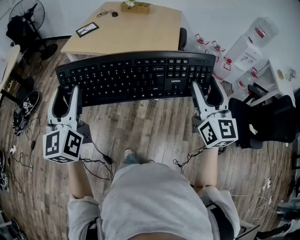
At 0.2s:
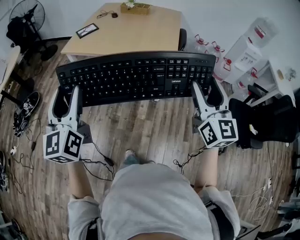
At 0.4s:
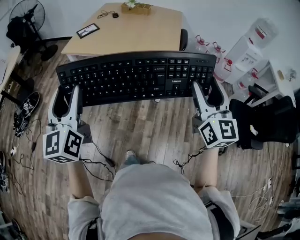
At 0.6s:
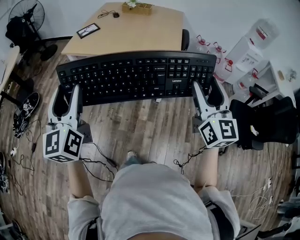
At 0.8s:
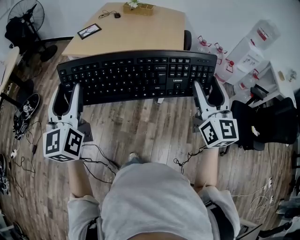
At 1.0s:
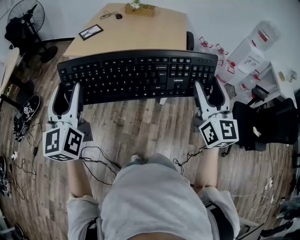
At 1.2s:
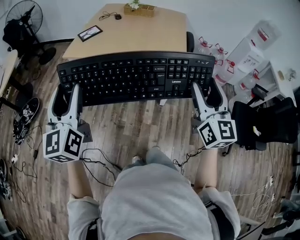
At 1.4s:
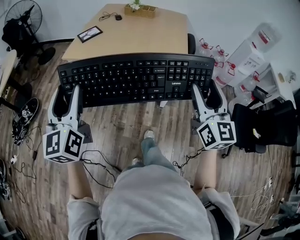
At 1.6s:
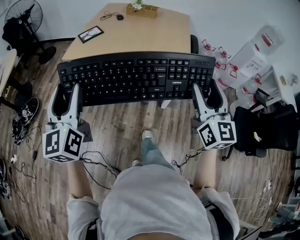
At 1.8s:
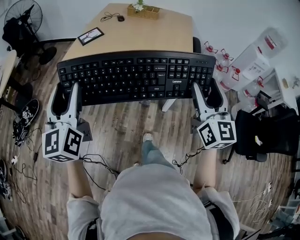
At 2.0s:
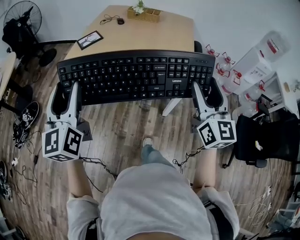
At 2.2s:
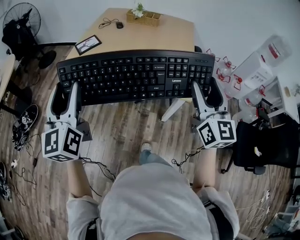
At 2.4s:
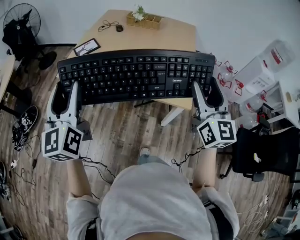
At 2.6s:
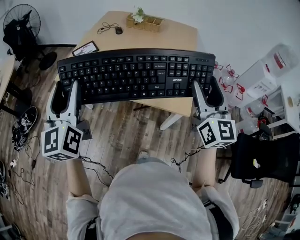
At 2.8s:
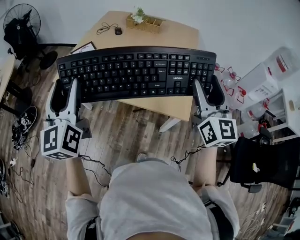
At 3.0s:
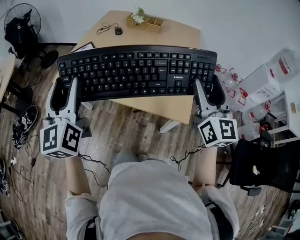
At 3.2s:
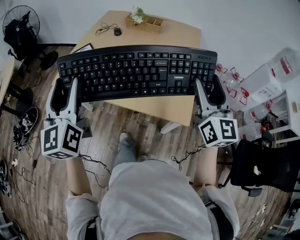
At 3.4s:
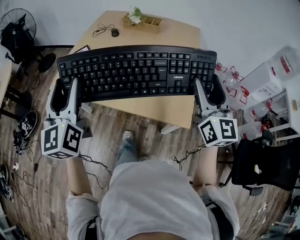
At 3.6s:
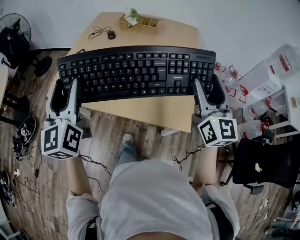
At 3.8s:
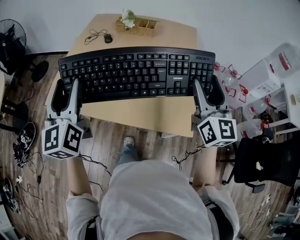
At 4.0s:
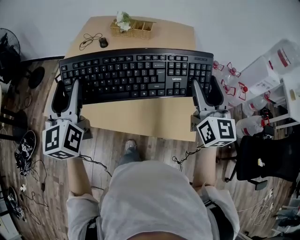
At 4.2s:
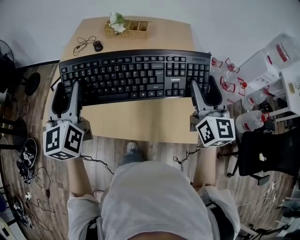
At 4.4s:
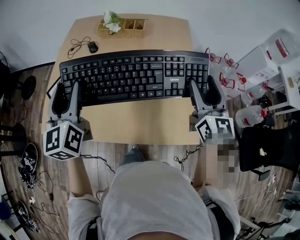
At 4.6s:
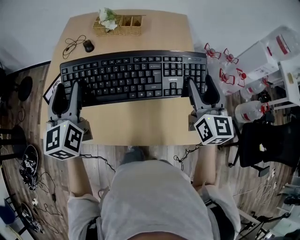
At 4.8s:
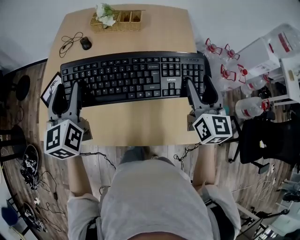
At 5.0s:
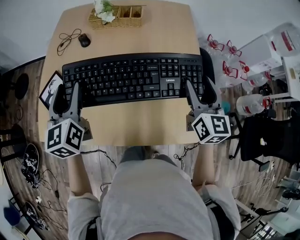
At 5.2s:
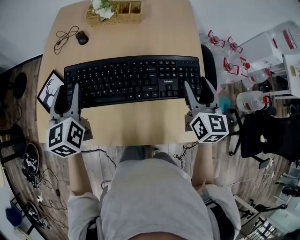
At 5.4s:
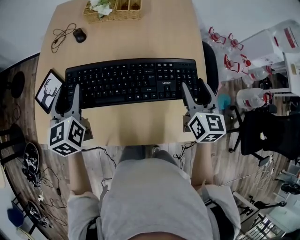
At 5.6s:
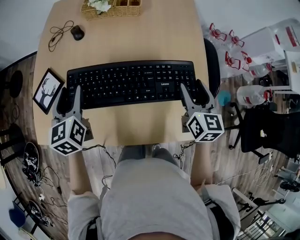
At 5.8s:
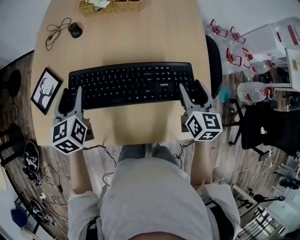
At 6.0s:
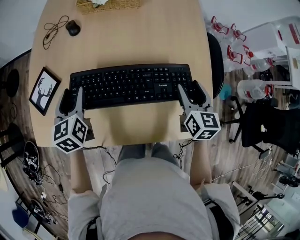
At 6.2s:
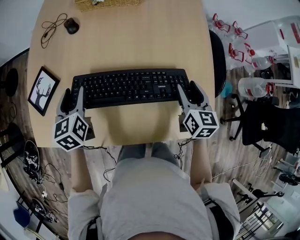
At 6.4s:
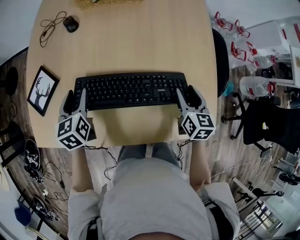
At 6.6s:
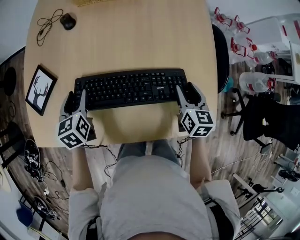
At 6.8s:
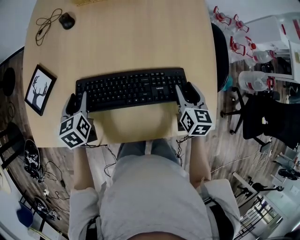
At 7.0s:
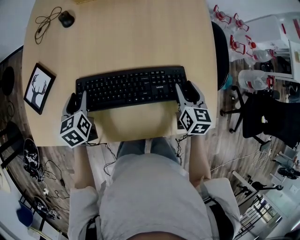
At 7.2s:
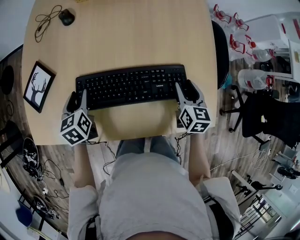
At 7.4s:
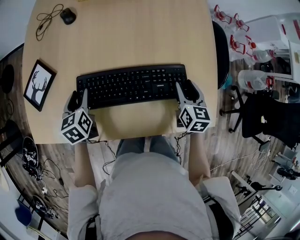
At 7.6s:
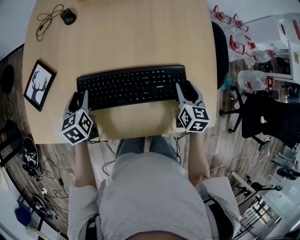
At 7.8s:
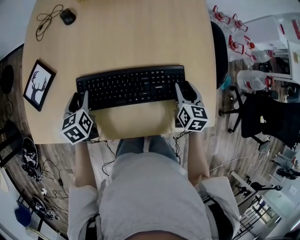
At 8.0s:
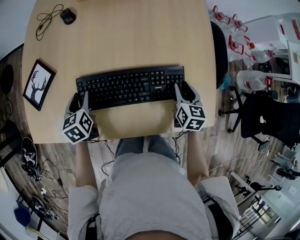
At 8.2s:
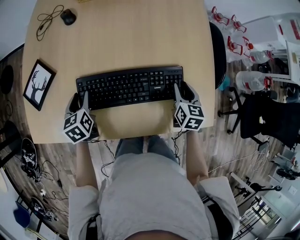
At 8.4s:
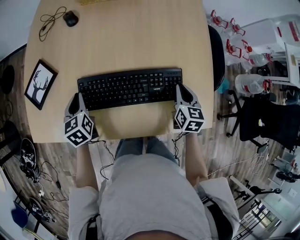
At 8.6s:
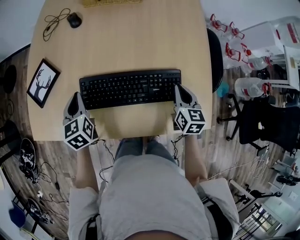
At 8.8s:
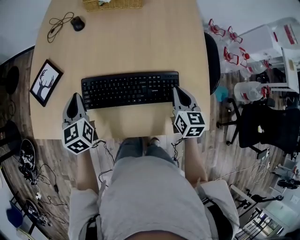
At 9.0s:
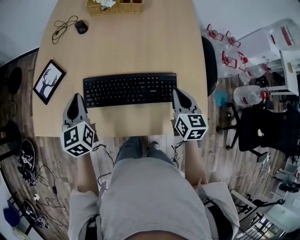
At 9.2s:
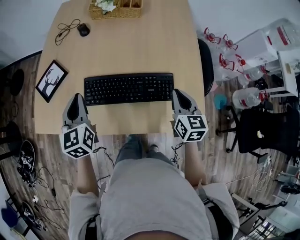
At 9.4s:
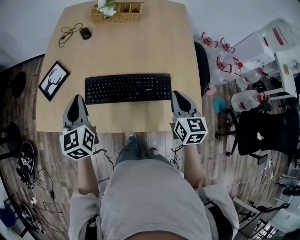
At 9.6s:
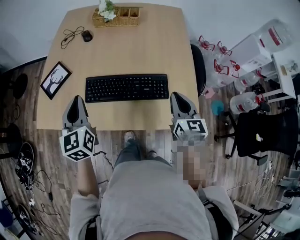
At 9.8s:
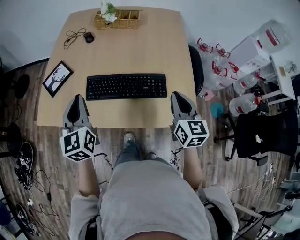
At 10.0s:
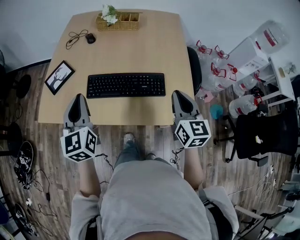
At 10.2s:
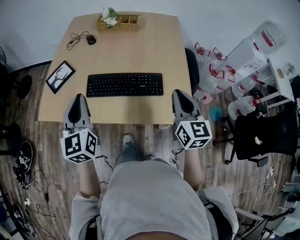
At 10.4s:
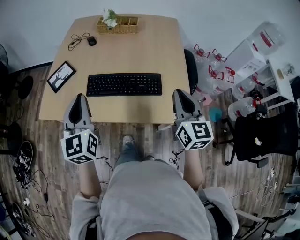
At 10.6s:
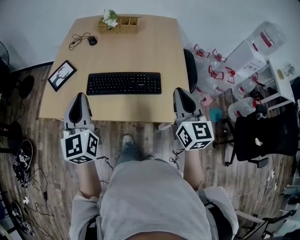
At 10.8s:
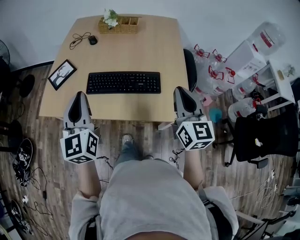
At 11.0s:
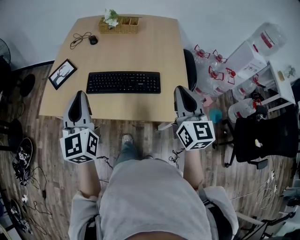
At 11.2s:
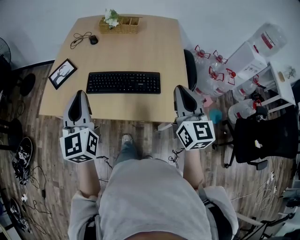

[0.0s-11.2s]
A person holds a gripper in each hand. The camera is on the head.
0.0s to 1.6s: The two grippers go approximately 15 cm forward and to the left.
1.6s to 3.2s: The two grippers go roughly 30 cm forward.
3.2s to 4.8s: The right gripper travels forward and downward by roughly 25 cm, and rotates roughly 20 degrees. The left gripper heads forward, covering some 35 cm, and swivels about 20 degrees.
4.8s to 6.4s: Both grippers move downward, approximately 25 cm. The right gripper rotates roughly 30 degrees, while the left gripper changes its angle by roughly 30 degrees.
6.4s to 8.0s: The left gripper moves downward, about 5 cm. The right gripper changes place by roughly 5 cm.
8.0s to 9.6s: Both grippers move upward and backward, roughly 25 cm. The right gripper turns by approximately 20 degrees, and closes its fingers. The left gripper tilts its fingers roughly 30 degrees upward, and closes.
9.6s to 11.2s: The left gripper moves backward, upward and to the right, about 15 cm. Meanwhile the right gripper shifts approximately 15 cm upward and backward.

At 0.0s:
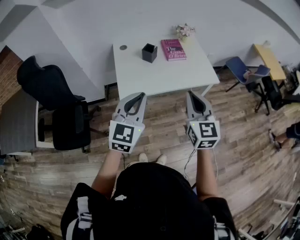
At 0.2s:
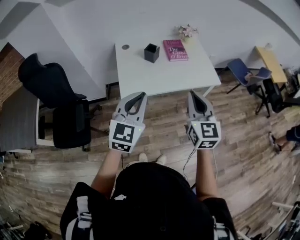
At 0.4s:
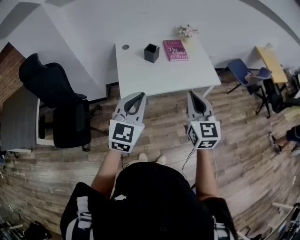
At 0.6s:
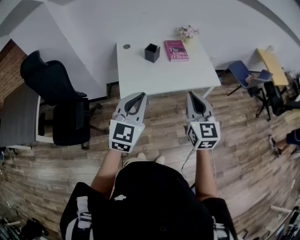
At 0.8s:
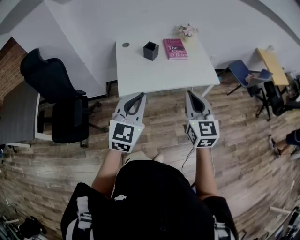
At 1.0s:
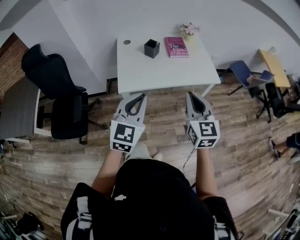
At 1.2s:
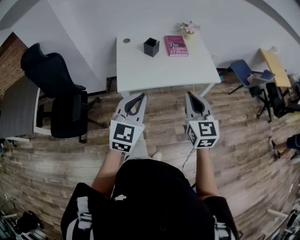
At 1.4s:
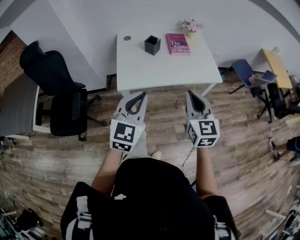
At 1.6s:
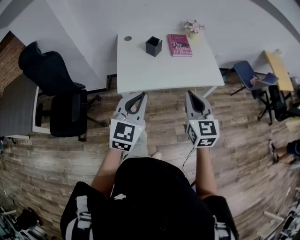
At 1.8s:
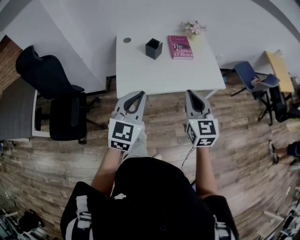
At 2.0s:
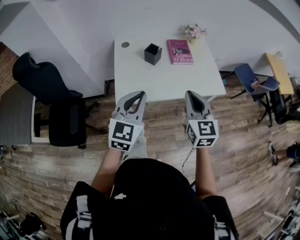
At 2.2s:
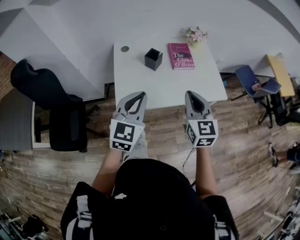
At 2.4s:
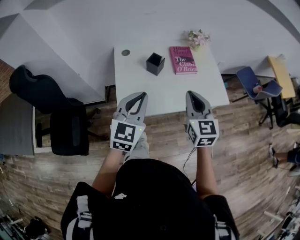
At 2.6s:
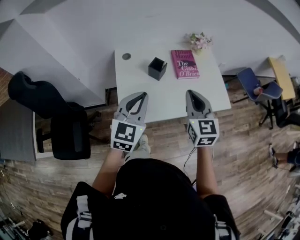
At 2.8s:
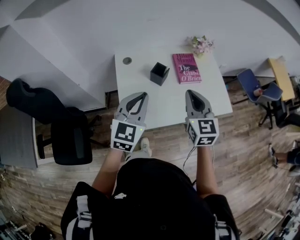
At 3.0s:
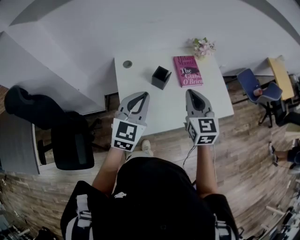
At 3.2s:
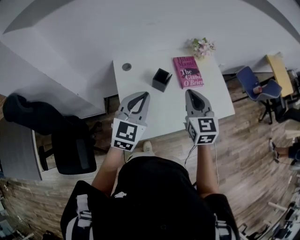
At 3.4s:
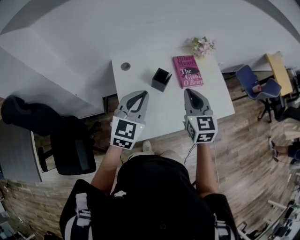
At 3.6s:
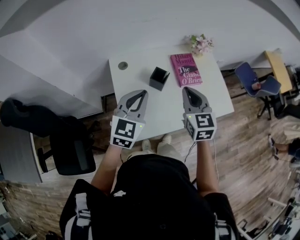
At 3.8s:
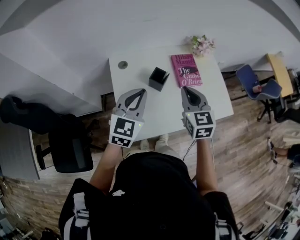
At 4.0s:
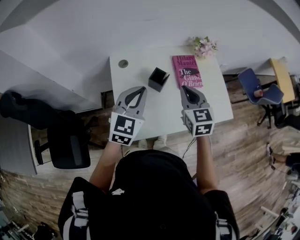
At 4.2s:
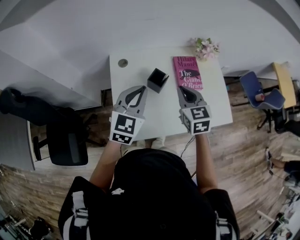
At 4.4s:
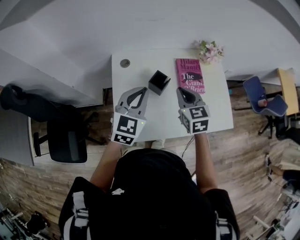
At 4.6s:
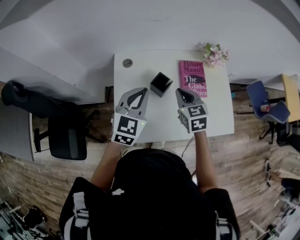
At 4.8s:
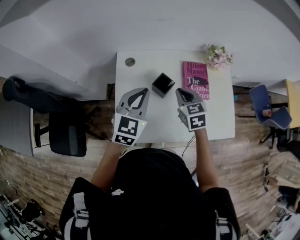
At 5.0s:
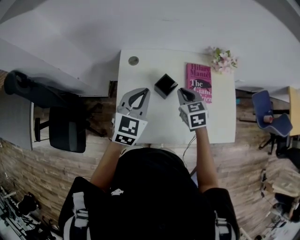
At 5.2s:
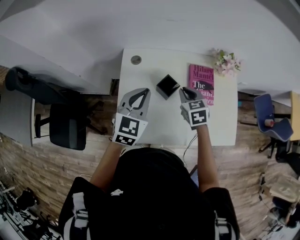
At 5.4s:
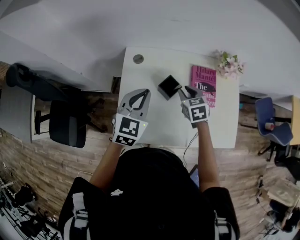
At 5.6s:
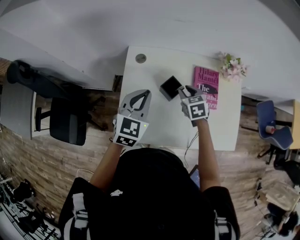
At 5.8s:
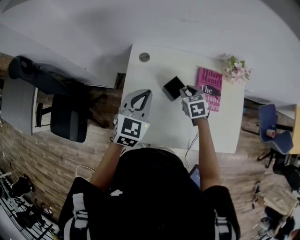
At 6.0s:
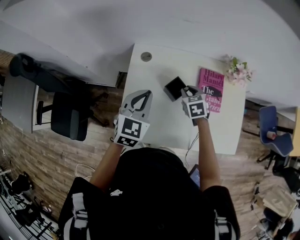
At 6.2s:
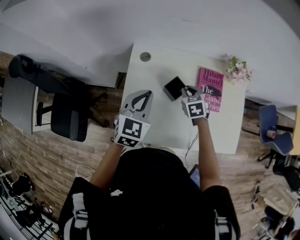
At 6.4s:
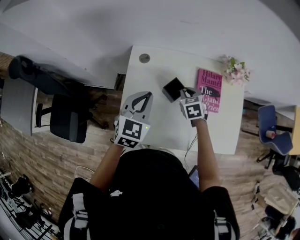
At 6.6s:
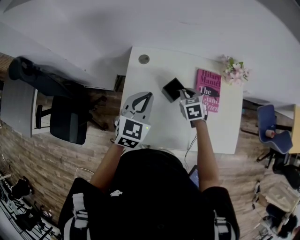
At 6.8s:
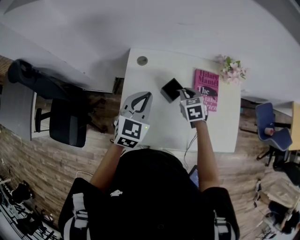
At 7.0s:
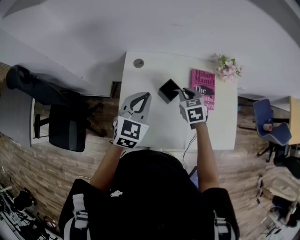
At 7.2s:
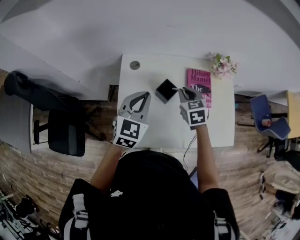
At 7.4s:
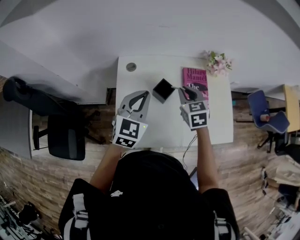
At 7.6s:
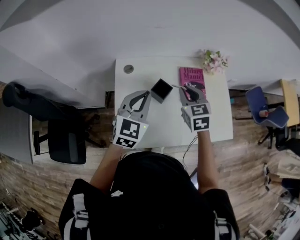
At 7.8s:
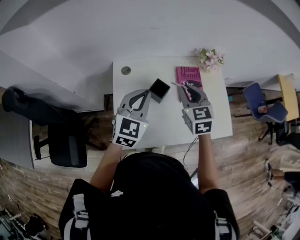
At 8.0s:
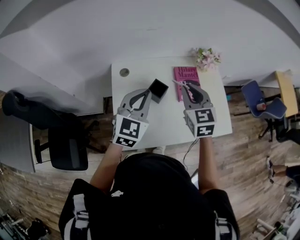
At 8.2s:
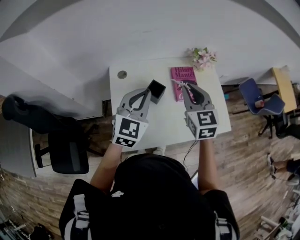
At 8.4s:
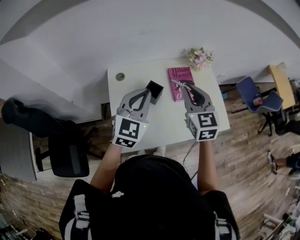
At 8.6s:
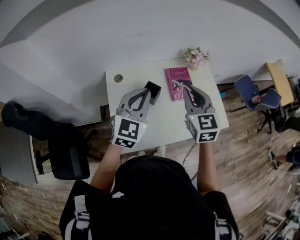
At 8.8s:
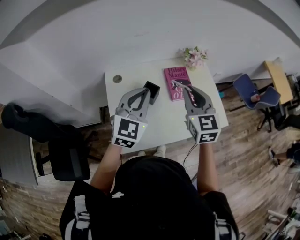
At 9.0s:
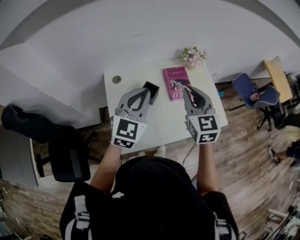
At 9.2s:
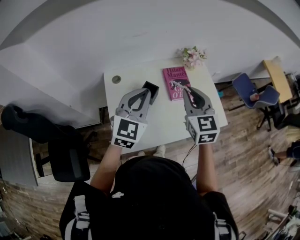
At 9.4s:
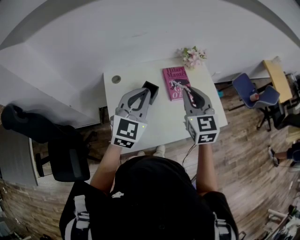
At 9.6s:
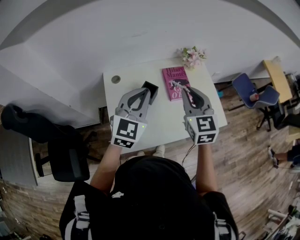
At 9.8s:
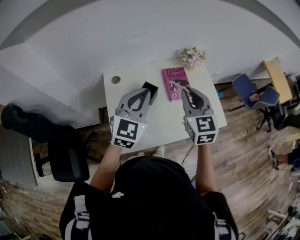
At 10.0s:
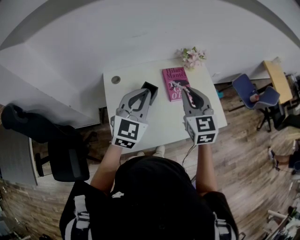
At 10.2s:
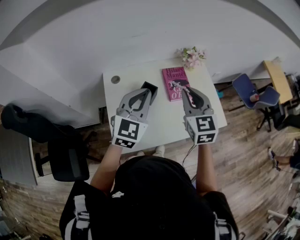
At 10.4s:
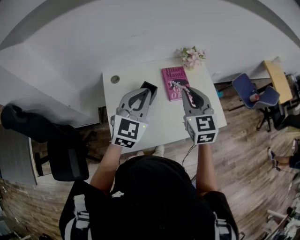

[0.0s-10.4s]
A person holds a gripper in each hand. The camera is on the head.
0.0s to 1.4s: The right gripper changes place by approximately 5 cm; the left gripper shifts by some 5 cm.
1.4s to 3.0s: The grippers both shift forward by approximately 30 cm.
3.0s to 4.4s: The right gripper goes about 15 cm forward and downward. The left gripper is displaced forward by some 10 cm.
4.4s to 6.0s: The right gripper is displaced downward and forward by approximately 20 cm, changes its angle by roughly 30 degrees, and opens its fingers, while the left gripper is displaced downward by approximately 5 cm.
6.0s to 7.4s: The right gripper moves upward, approximately 10 cm, while the left gripper shifts by about 5 cm.
7.4s to 9.0s: The right gripper moves upward, backward and to the right, about 20 cm, and changes its angle by some 30 degrees; the left gripper is displaced upward and to the right by some 10 cm.
9.0s to 10.4s: The grippers make only small movements.

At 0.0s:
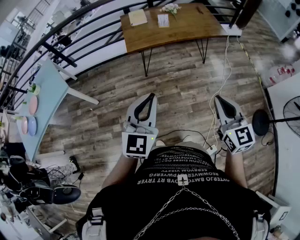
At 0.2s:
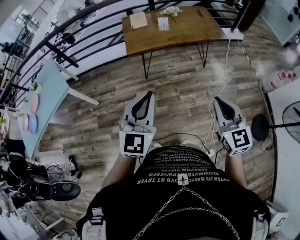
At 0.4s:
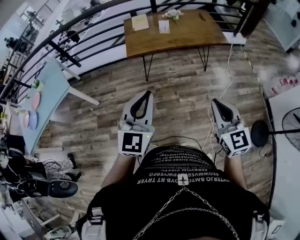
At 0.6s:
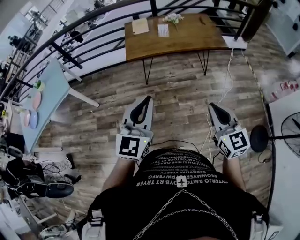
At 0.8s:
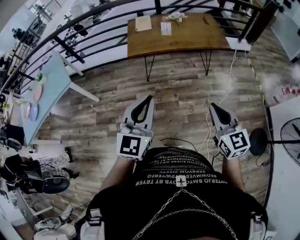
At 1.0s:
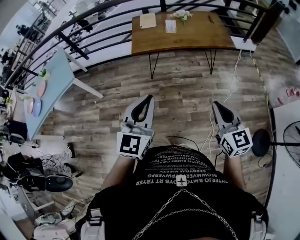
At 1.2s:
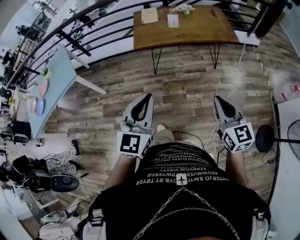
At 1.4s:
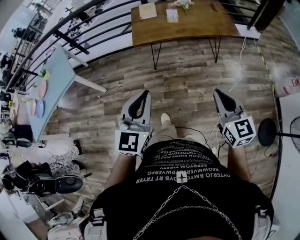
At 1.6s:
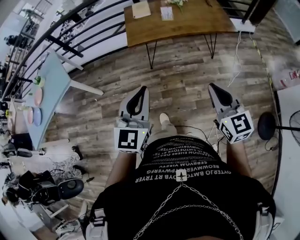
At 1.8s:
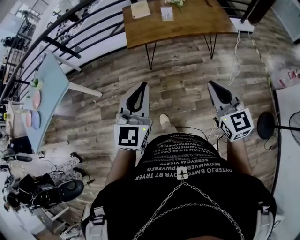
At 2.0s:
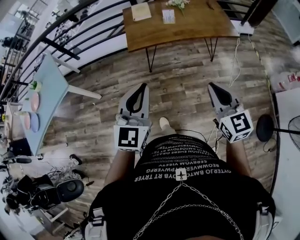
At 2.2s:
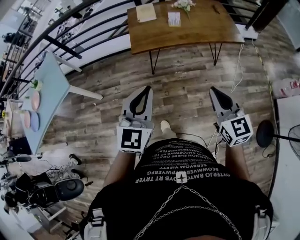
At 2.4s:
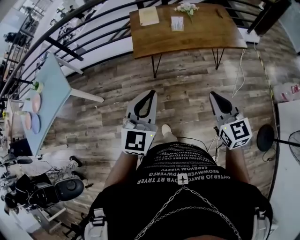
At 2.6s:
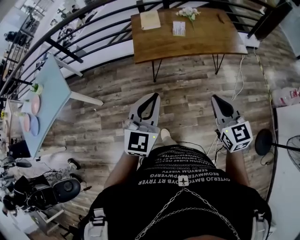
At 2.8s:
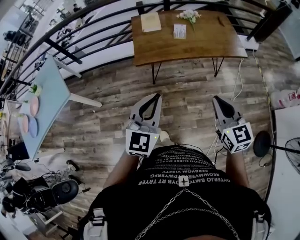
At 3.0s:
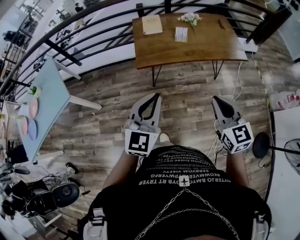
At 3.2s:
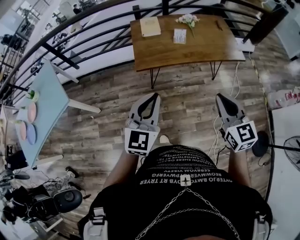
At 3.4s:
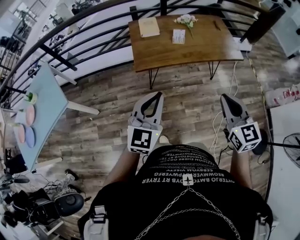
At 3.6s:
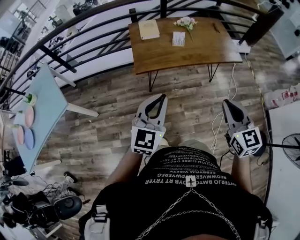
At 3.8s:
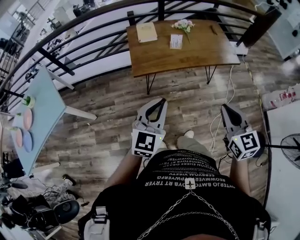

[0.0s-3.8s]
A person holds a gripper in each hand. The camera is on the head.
0.0s to 1.2s: The grippers both shift to the right by some 10 cm.
1.2s to 2.6s: The right gripper is displaced forward and to the left by some 20 cm. Meanwhile the left gripper heads forward, covering approximately 20 cm.
2.6s to 3.8s: The left gripper shifts by roughly 5 cm.
